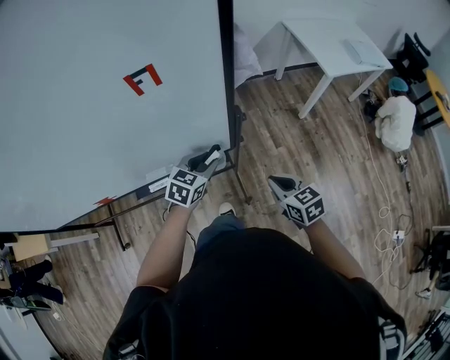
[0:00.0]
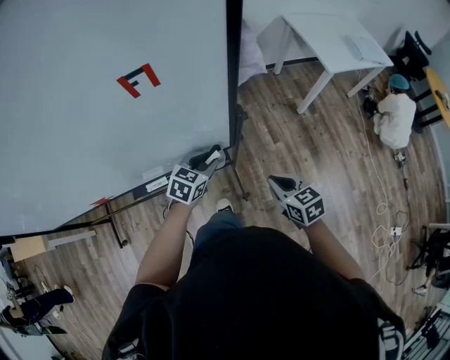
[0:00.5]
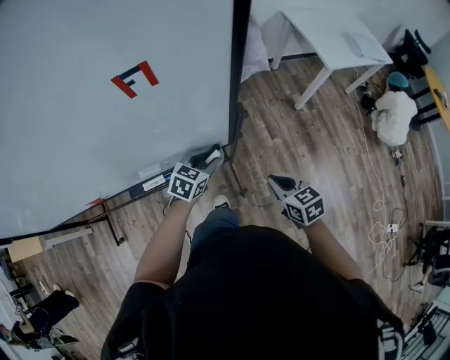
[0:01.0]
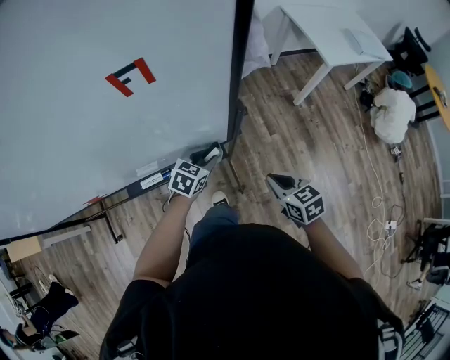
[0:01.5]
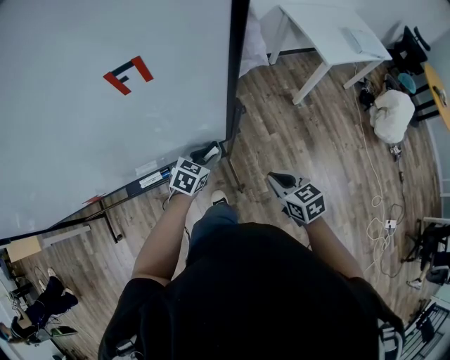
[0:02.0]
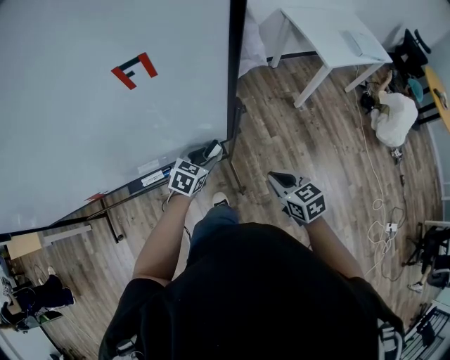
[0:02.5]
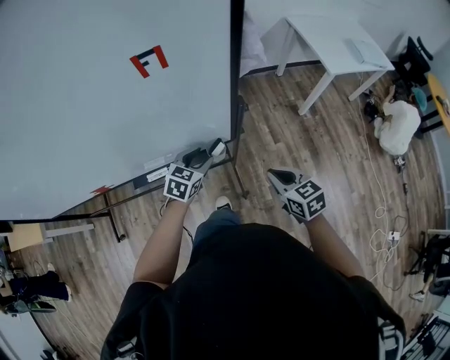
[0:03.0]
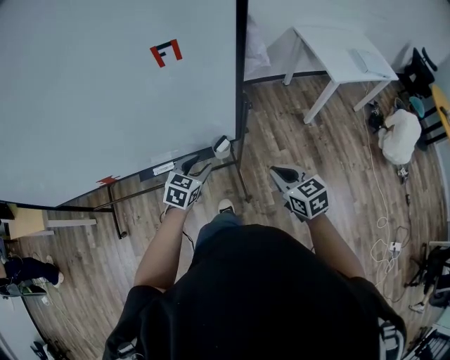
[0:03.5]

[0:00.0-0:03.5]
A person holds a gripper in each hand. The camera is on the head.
0:00.0 to 0:02.0: The left gripper goes about 10 cm downward.
0:02.0 to 0:03.5: The right gripper heads upward, covering roughly 5 cm, while the left gripper shifts some 10 cm backward, upward and to the left.

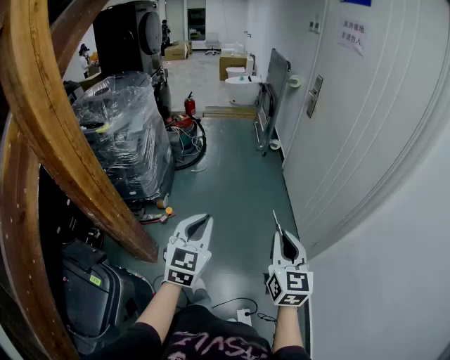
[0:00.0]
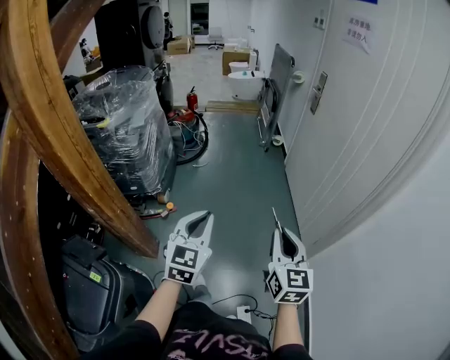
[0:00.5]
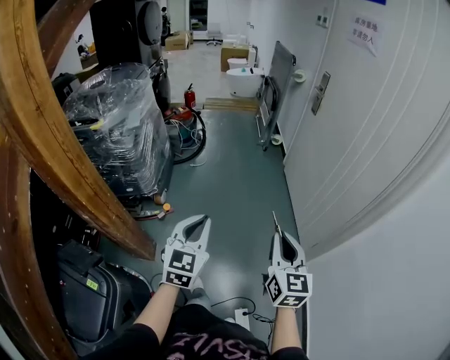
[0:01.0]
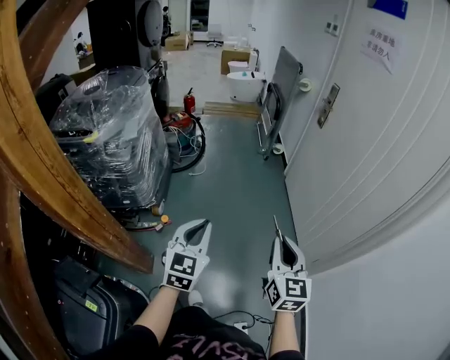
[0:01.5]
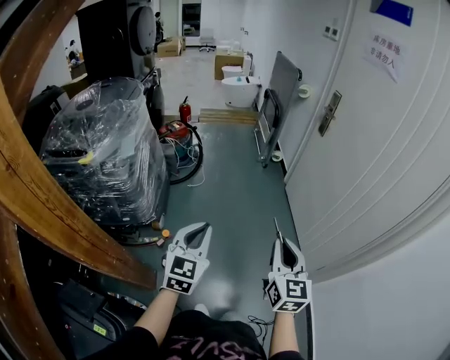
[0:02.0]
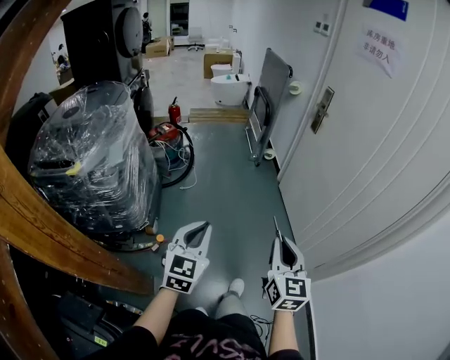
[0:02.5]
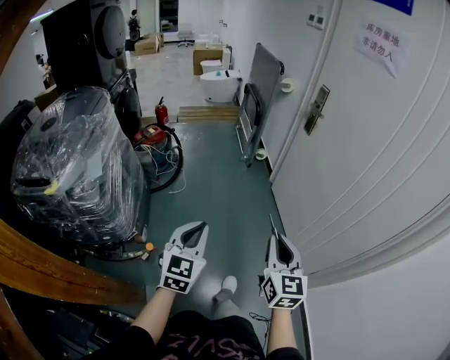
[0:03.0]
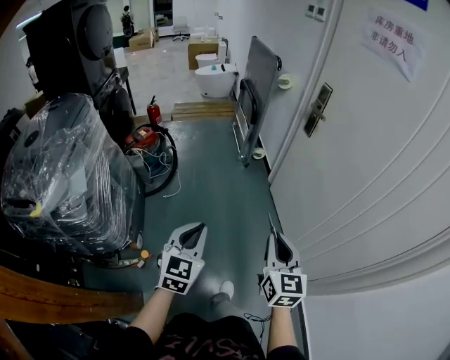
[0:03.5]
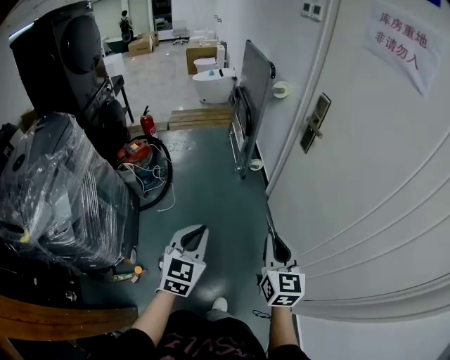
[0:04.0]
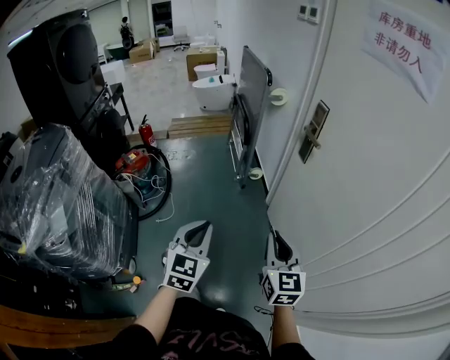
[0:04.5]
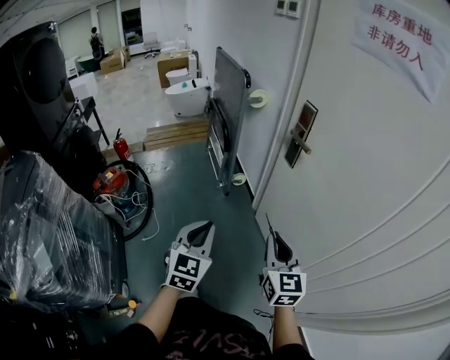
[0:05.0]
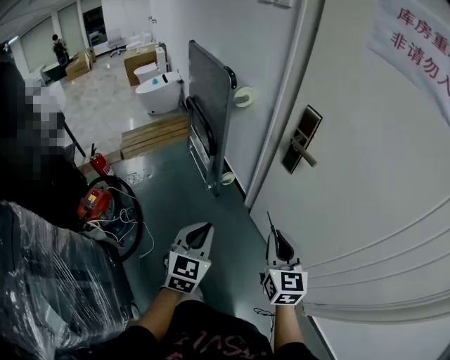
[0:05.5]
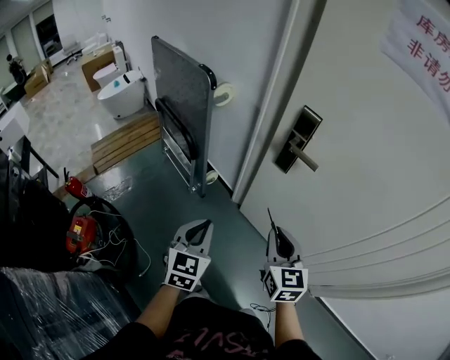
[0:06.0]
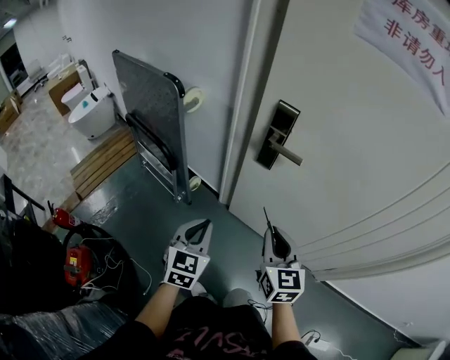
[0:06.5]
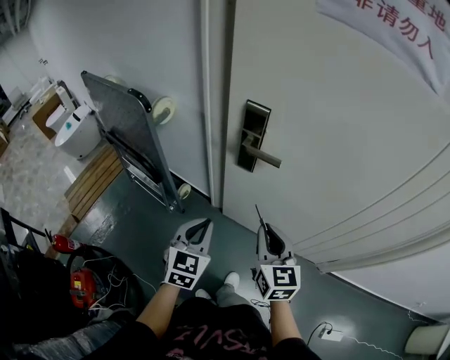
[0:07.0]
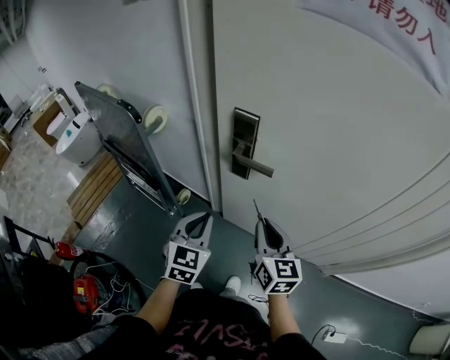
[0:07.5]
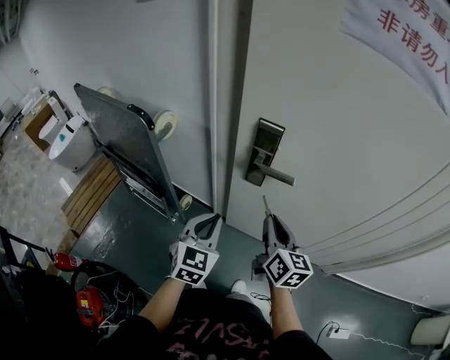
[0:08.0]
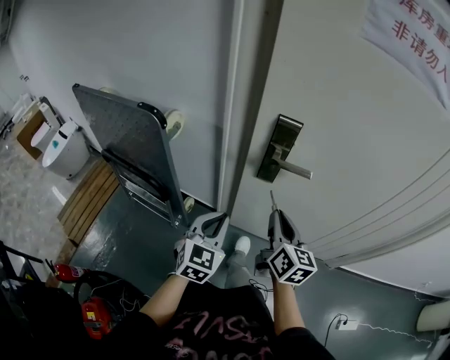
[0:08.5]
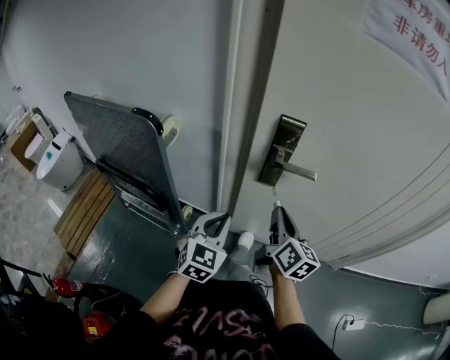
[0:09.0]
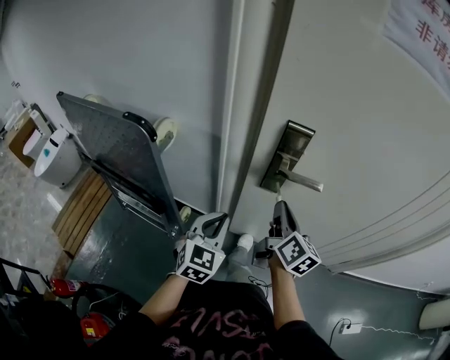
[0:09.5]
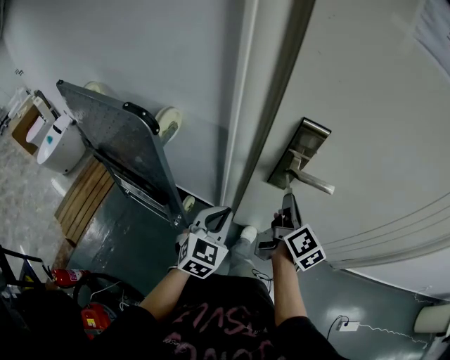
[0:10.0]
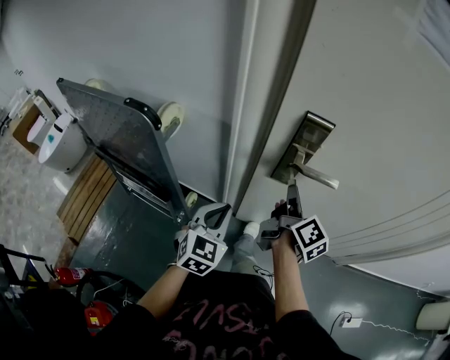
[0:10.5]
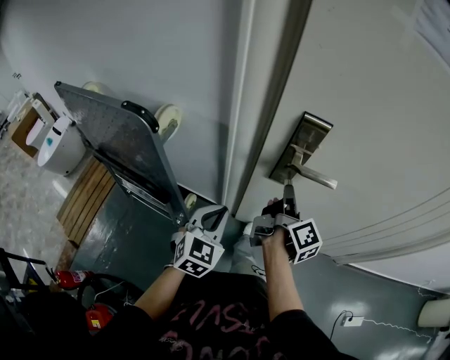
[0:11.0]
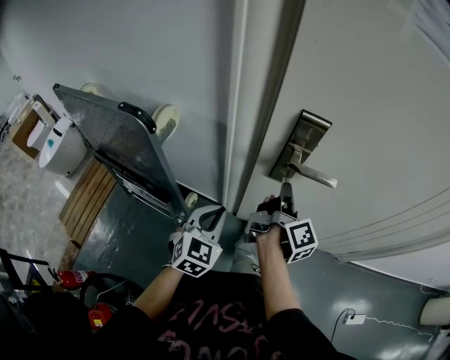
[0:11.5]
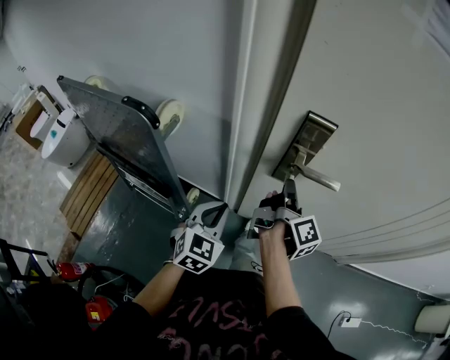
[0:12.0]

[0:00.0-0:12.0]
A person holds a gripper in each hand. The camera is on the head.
0:00.0 to 0:02.0: Both grippers move forward and to the left, about 20 cm.
0:02.0 to 0:04.0: The two grippers go approximately 35 cm forward.
0:04.0 to 0:06.0: The right gripper ends up some 30 cm from where it was, and turns by approximately 30 degrees, while the left gripper ends up roughly 40 cm from where it was, and swivels roughly 30 degrees.
0:06.0 to 0:08.0: Both grippers move forward, roughly 15 cm. The left gripper turns by some 30 degrees. Meanwhile the right gripper turns by approximately 40 degrees.
0:08.0 to 0:10.0: The left gripper is displaced forward, downward and to the left by about 10 cm; the right gripper travels forward by some 10 cm, and turns by roughly 30 degrees.
0:10.0 to 0:12.0: The right gripper rotates some 40 degrees.

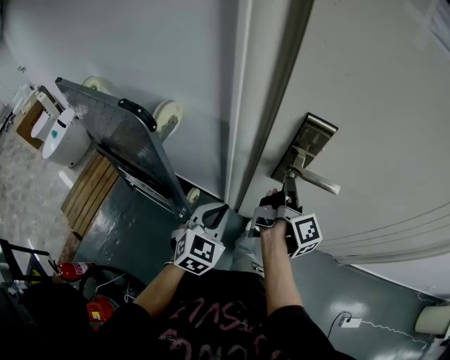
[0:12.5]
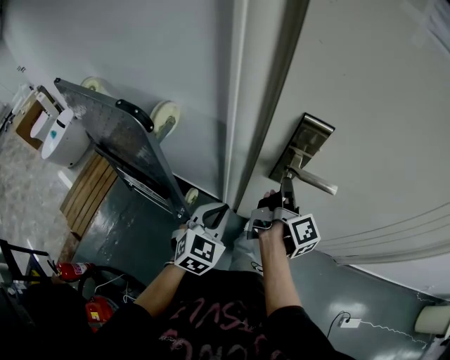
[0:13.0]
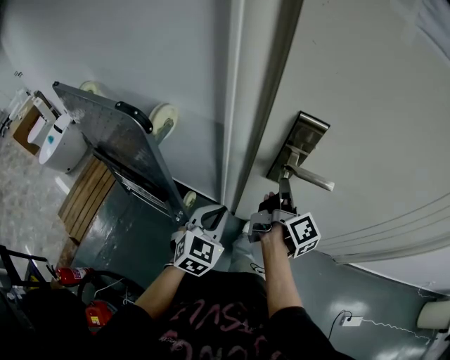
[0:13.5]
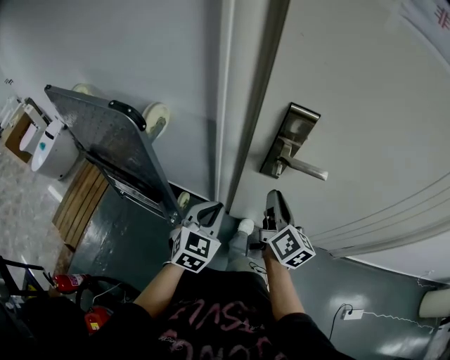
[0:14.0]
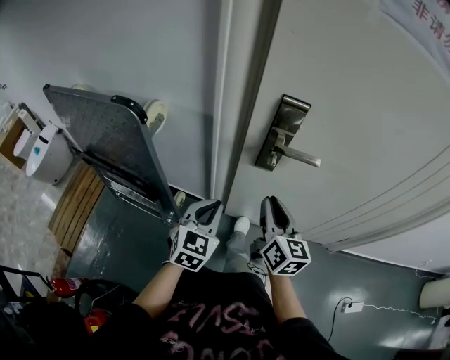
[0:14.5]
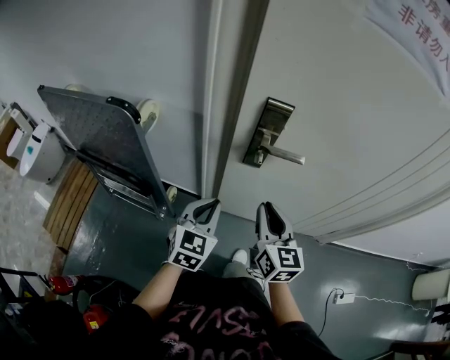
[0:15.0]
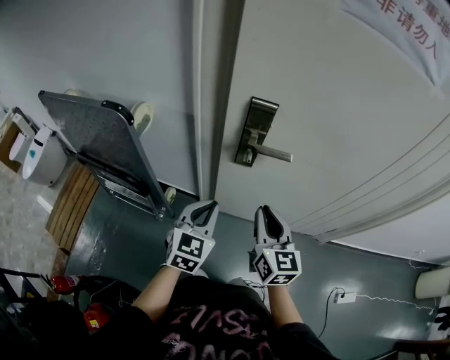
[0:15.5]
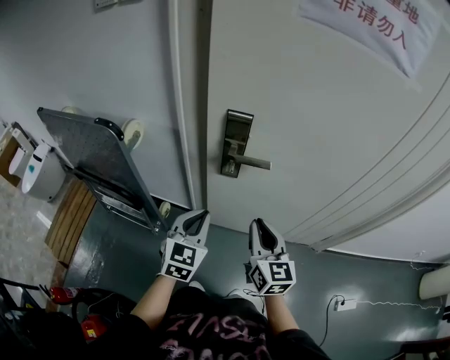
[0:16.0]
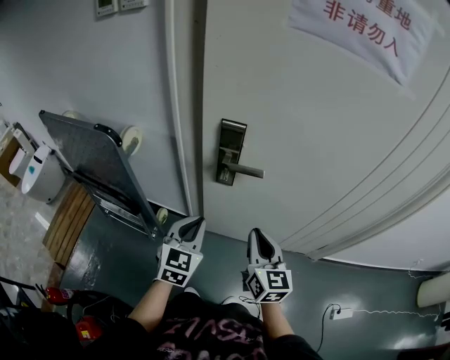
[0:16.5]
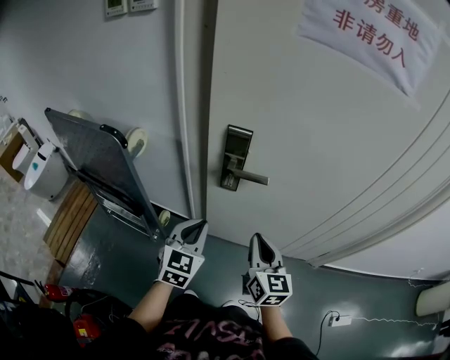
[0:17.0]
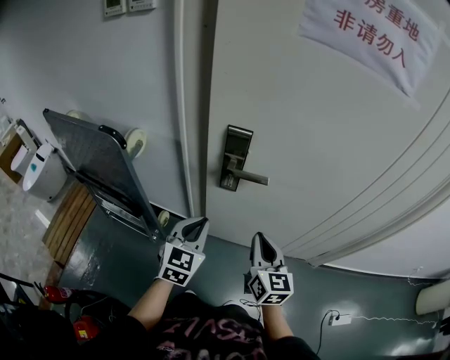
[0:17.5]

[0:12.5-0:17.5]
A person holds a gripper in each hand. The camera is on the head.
0:12.5 to 0:15.0: The right gripper shifts about 15 cm backward, and rotates around the line of its fingers by some 80 degrees, counterclockwise from behind. The left gripper travels backward by about 5 cm.
0:15.0 to 0:17.5: The left gripper moves to the right, approximately 5 cm. The right gripper heads to the right, covering approximately 10 cm.

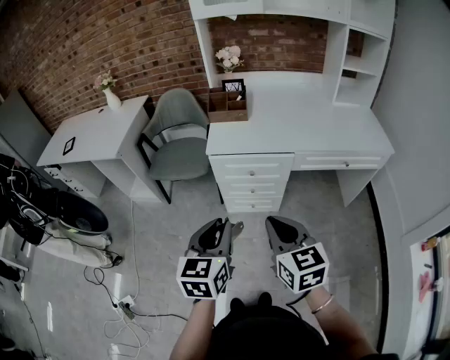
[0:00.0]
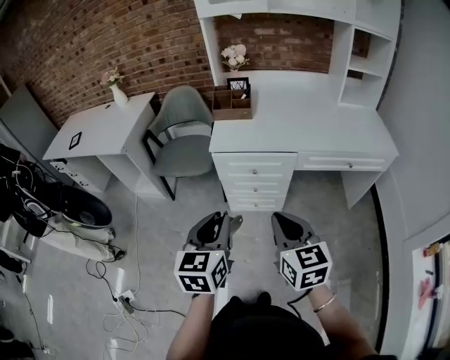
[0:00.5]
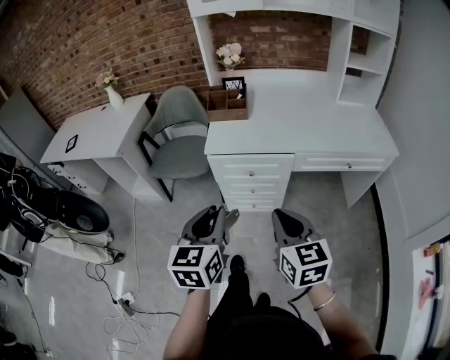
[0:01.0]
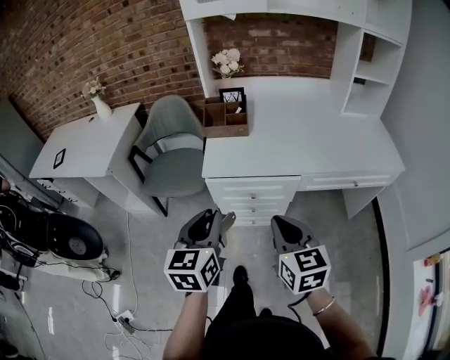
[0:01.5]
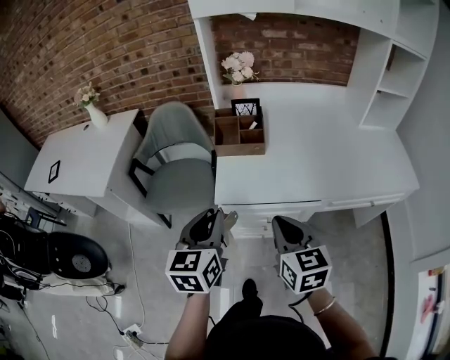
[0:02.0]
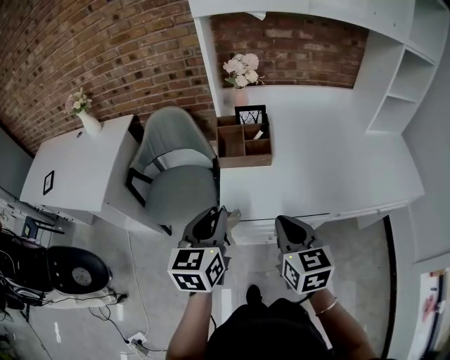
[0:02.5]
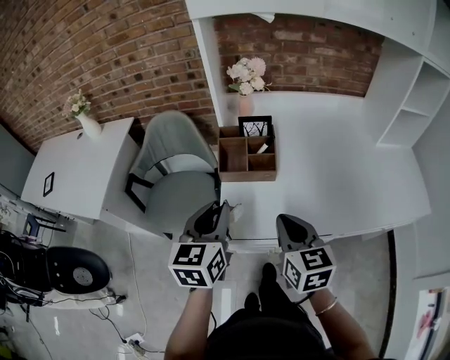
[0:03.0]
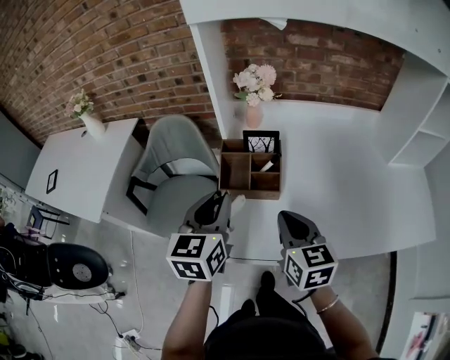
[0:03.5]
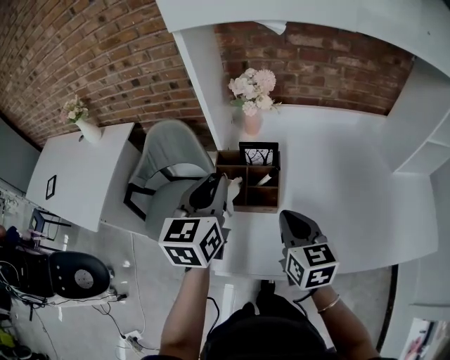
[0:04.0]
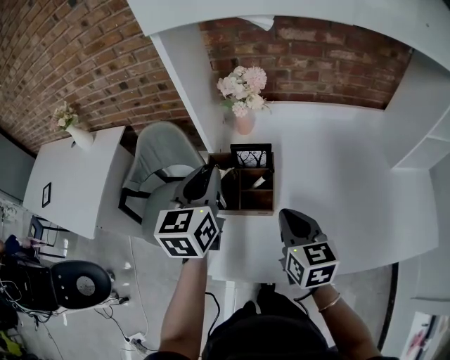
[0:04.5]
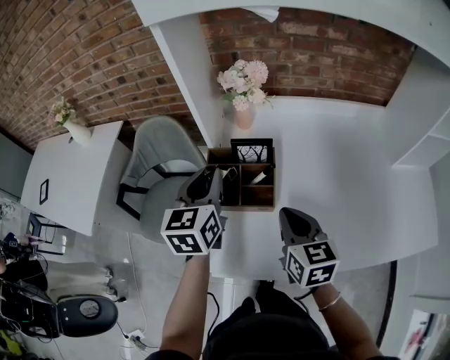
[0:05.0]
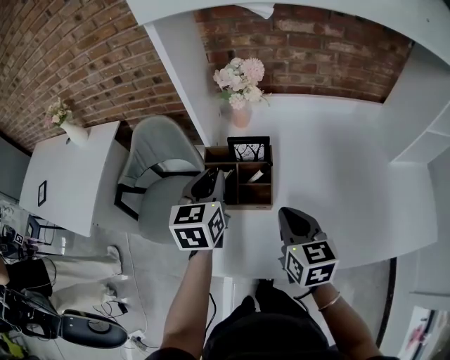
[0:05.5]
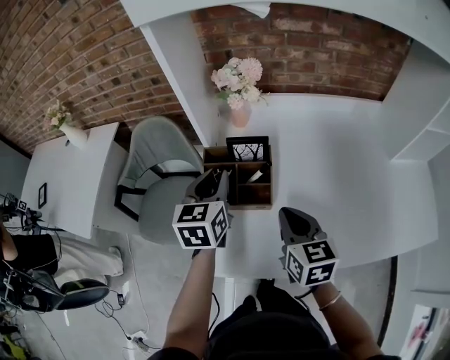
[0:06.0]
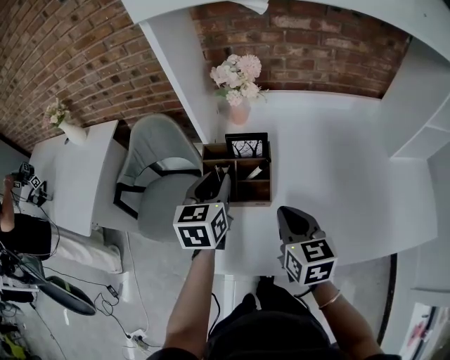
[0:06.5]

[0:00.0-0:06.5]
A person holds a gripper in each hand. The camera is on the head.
0:00.0 to 0:02.0: The grippers both shift forward by approximately 30 cm.
0:02.0 to 0:04.5: The grippers both shift forward by about 35 cm.
0:04.5 to 0:06.5: The left gripper goes about 10 cm downward.
